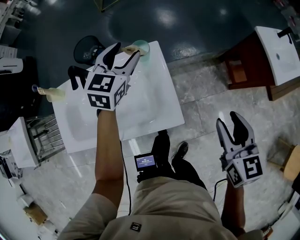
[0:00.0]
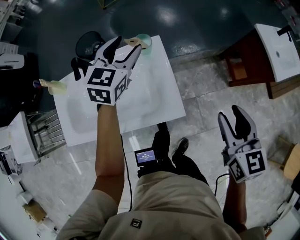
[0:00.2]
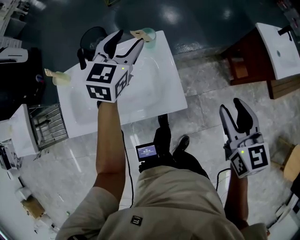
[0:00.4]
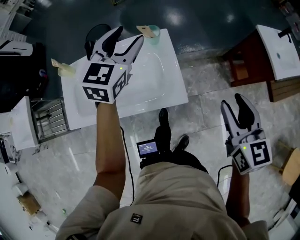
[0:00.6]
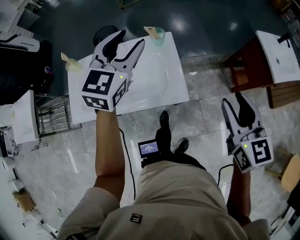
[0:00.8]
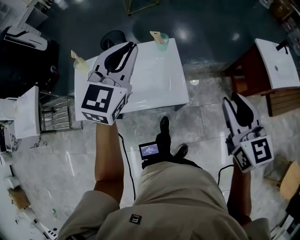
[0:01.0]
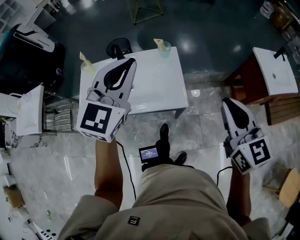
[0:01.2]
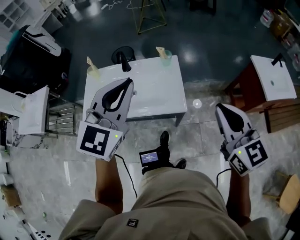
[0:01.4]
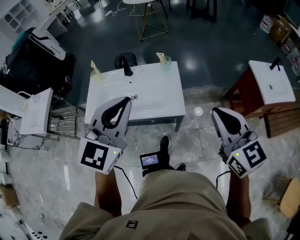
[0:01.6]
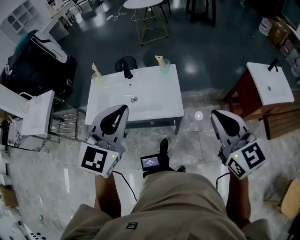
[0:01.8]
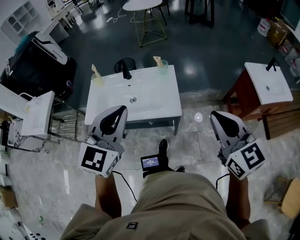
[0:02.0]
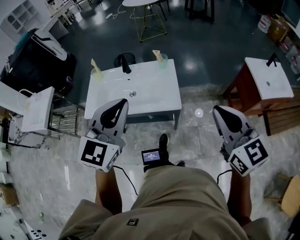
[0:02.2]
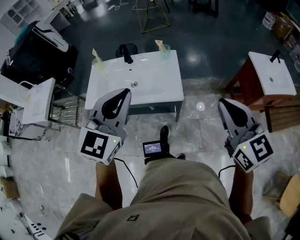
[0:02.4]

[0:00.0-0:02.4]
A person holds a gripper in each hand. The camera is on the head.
0:00.0 to 0:01.2: The right gripper moves upward and backward, roughly 20 cm, turns by some 20 degrees, and closes up. The left gripper travels backward and upward by about 35 cm, changes its angle by roughly 20 degrees, and closes.
0:01.2 to 0:02.4: The right gripper heads backward and upward, covering about 15 cm. The left gripper goes some 20 cm backward.

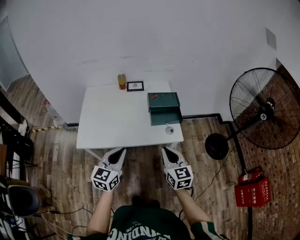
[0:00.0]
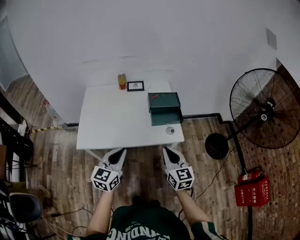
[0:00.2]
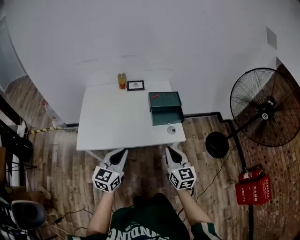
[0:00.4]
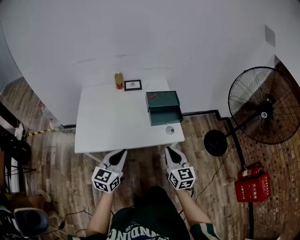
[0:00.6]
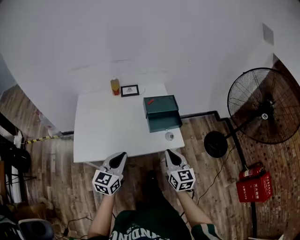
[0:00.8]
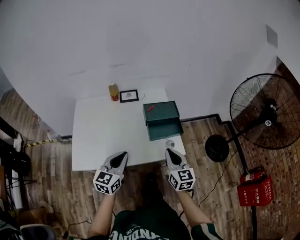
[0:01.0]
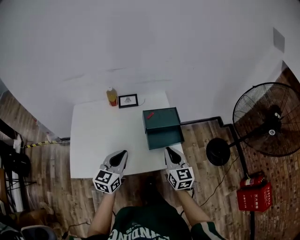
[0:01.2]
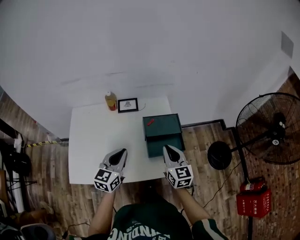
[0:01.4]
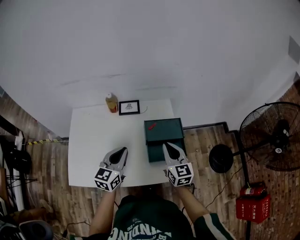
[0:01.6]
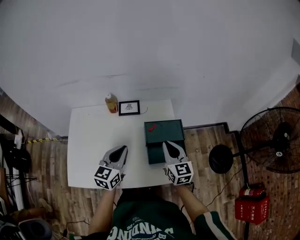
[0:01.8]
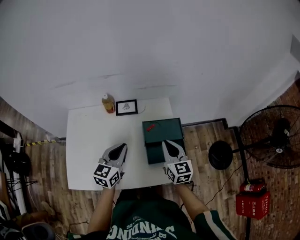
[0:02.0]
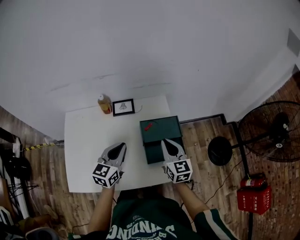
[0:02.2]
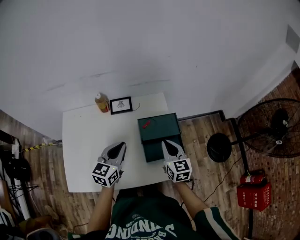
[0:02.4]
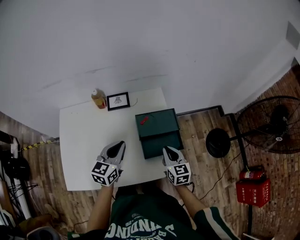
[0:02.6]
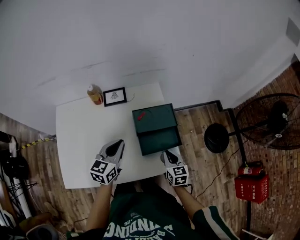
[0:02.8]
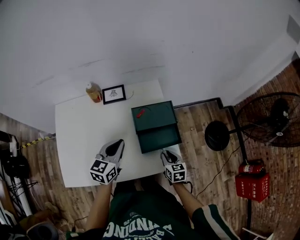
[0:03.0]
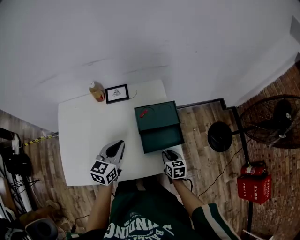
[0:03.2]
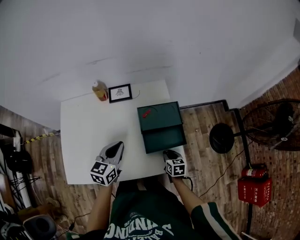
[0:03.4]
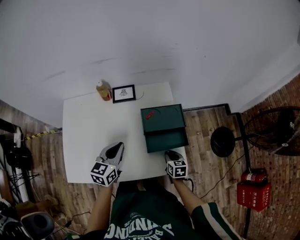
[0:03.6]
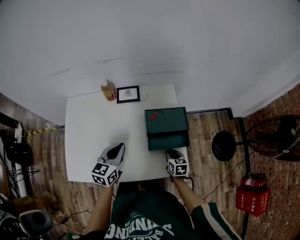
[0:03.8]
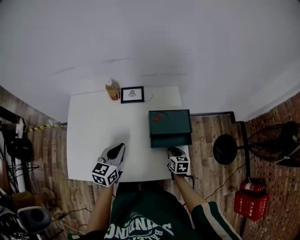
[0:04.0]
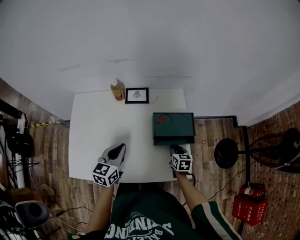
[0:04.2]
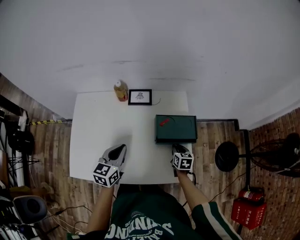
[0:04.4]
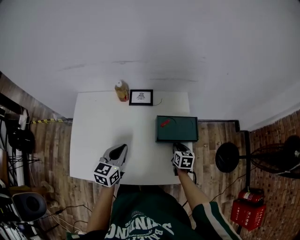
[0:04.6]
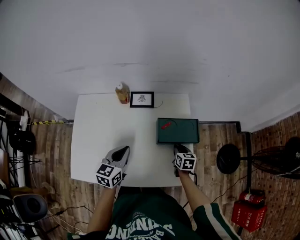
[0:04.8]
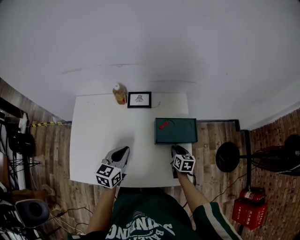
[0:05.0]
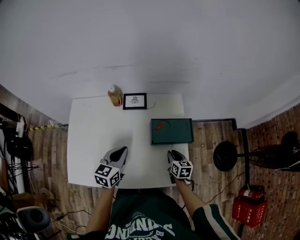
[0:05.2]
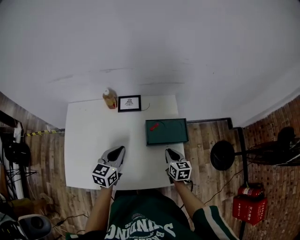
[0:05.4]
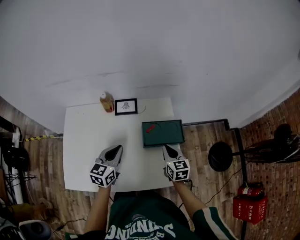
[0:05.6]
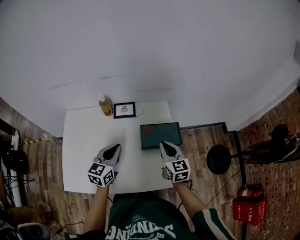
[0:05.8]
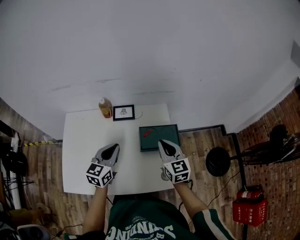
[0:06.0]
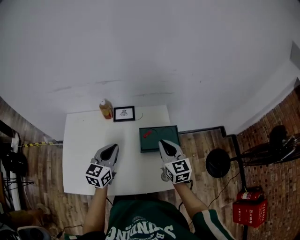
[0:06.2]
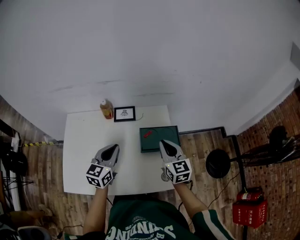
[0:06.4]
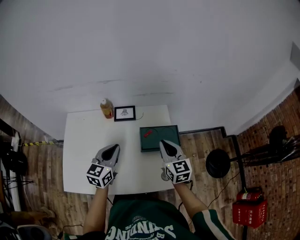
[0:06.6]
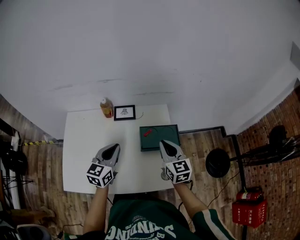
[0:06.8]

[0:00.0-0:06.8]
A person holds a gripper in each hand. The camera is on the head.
0:00.0 to 0:01.4: The two grippers go approximately 25 cm forward.
0:01.4 to 0:02.8: The left gripper is displaced forward by approximately 10 cm. Meanwhile the right gripper is displaced downward by approximately 15 cm, and changes its angle by about 20 degrees.
0:02.8 to 0:04.0: The right gripper travels downward by roughly 10 cm. Meanwhile the left gripper is displaced to the left by approximately 5 cm.
0:04.0 to 0:05.4: The right gripper is displaced upward by roughly 5 cm.
0:05.4 to 0:06.8: The right gripper moves upward, some 20 cm, and turns by roughly 30 degrees; the left gripper moves upward, about 5 cm.

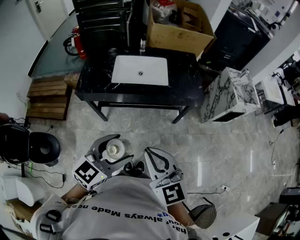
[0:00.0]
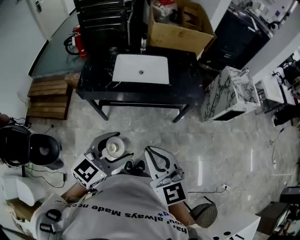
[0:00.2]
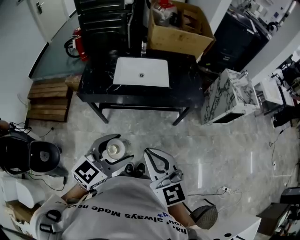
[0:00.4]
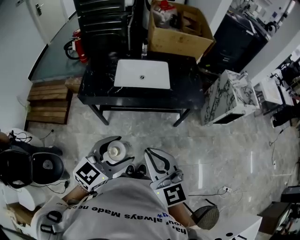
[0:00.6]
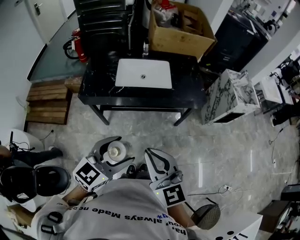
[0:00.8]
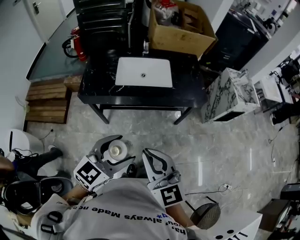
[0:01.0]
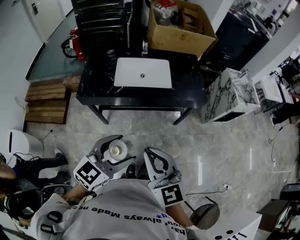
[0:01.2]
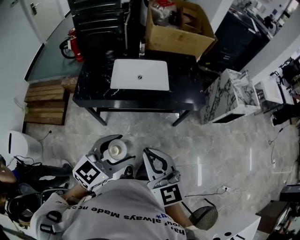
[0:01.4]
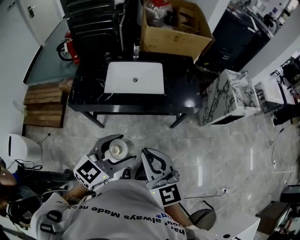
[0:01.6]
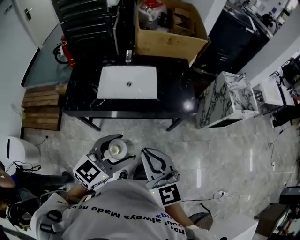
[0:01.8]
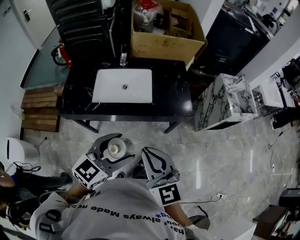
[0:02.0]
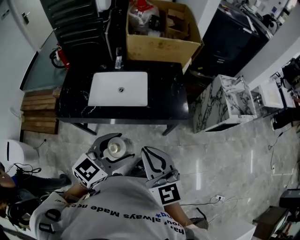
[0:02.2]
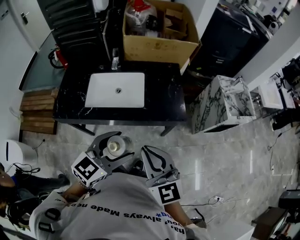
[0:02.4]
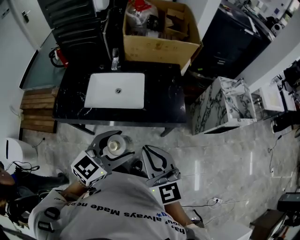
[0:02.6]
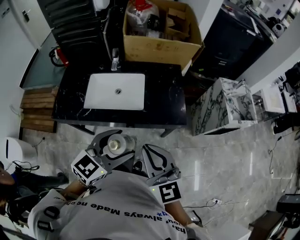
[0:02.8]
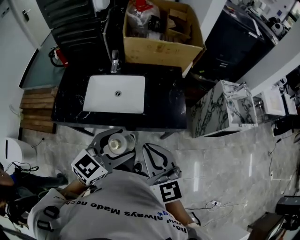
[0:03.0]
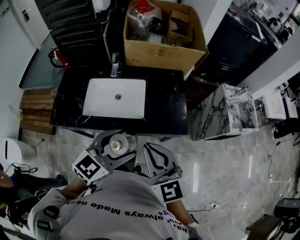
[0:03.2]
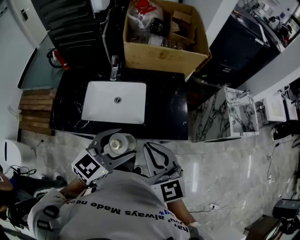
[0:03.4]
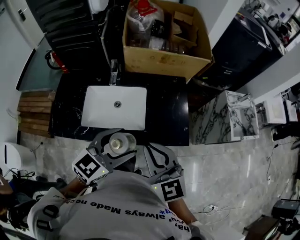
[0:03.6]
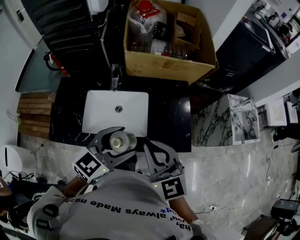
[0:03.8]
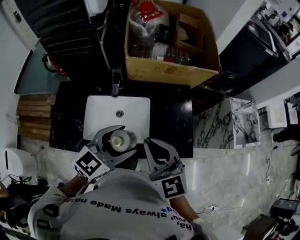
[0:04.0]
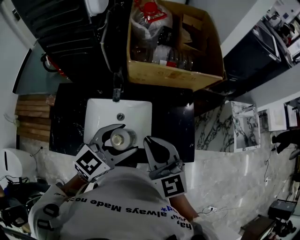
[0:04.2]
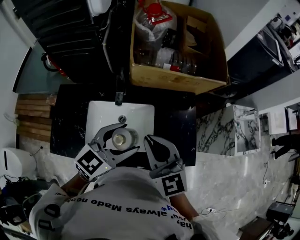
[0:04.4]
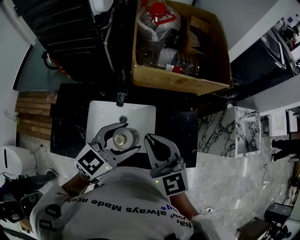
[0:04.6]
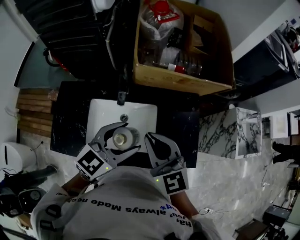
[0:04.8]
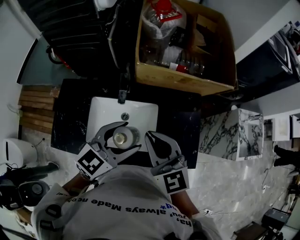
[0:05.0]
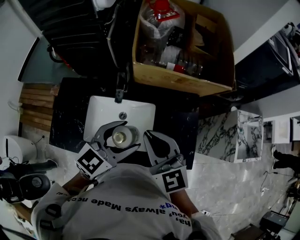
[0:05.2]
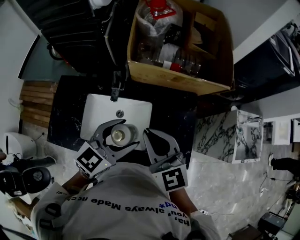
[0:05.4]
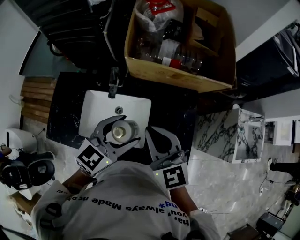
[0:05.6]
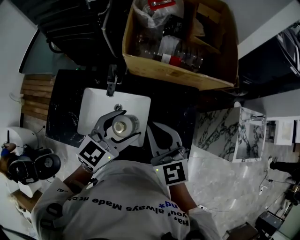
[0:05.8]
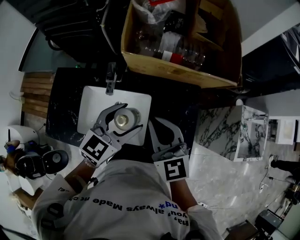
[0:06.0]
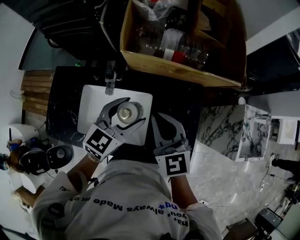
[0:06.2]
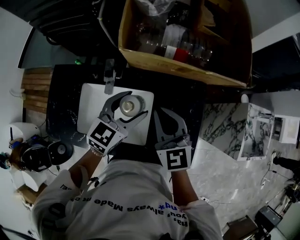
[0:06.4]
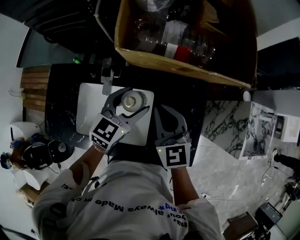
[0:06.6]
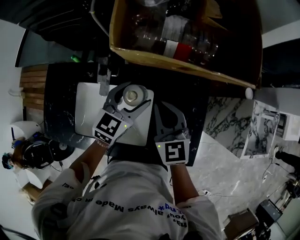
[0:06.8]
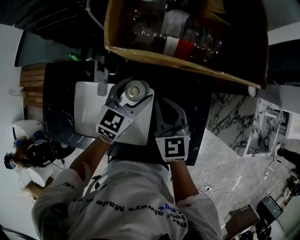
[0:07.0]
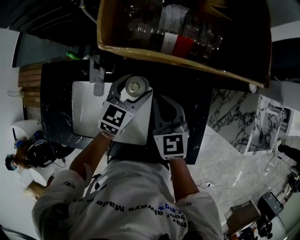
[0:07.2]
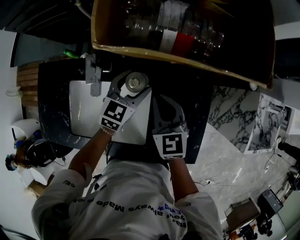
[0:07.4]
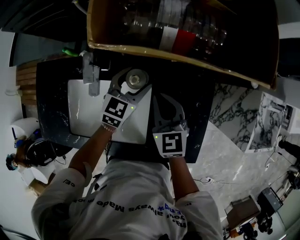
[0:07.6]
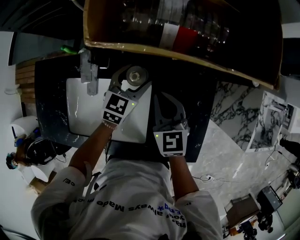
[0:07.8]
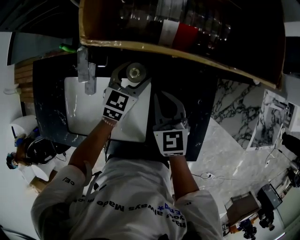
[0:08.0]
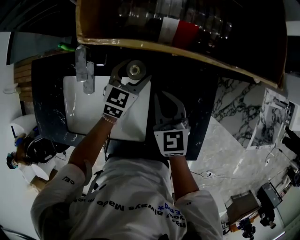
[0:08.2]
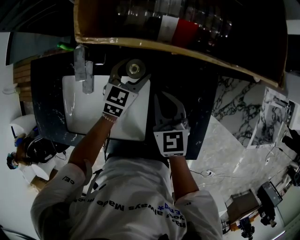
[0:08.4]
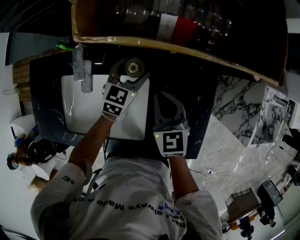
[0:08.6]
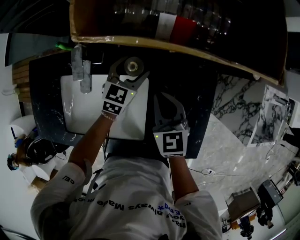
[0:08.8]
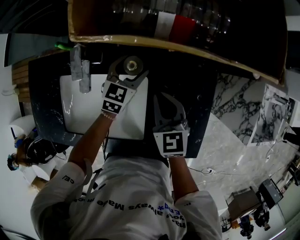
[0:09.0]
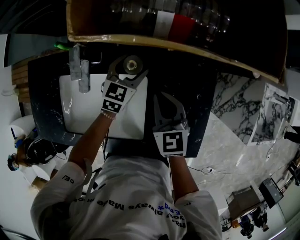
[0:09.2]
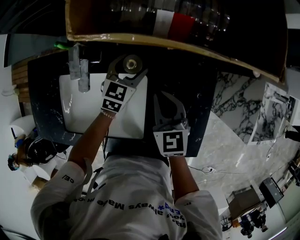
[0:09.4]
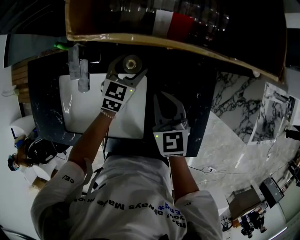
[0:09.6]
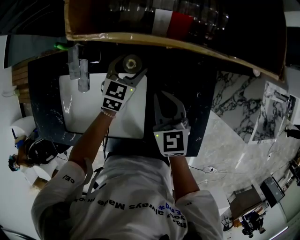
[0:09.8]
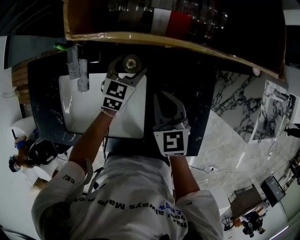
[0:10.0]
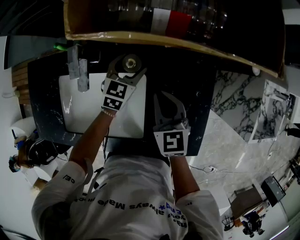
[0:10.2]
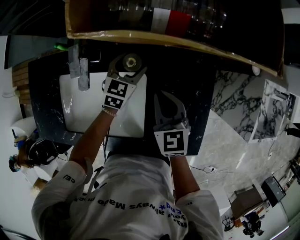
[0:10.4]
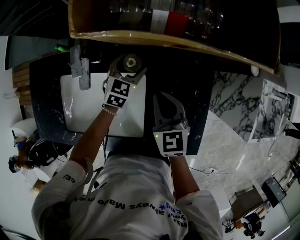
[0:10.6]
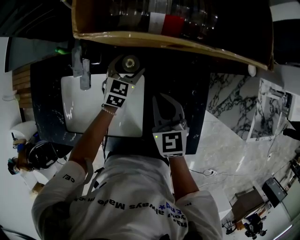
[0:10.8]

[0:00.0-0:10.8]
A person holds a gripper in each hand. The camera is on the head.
0:00.0 to 0:01.6: Both grippers move forward, about 10 cm.
0:01.6 to 0:03.0: Both grippers travel together forward and to the right, roughly 25 cm.
0:03.0 to 0:04.6: The grippers both shift forward and to the left by some 30 cm.
0:04.6 to 0:06.2: The right gripper is displaced forward, to the right and downward by about 15 cm. The left gripper goes approximately 15 cm forward, downward and to the right.
0:06.2 to 0:07.8: The two grippers go some 25 cm downward and forward.
0:07.8 to 0:09.2: The grippers make only small movements.
0:09.2 to 0:10.8: The grippers move only a little.

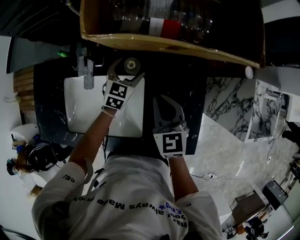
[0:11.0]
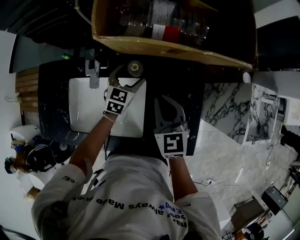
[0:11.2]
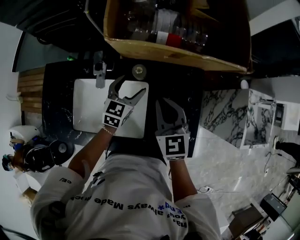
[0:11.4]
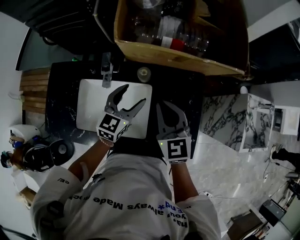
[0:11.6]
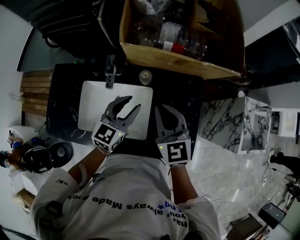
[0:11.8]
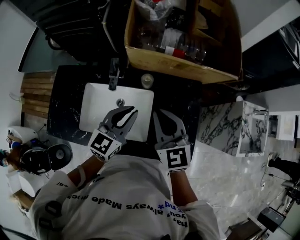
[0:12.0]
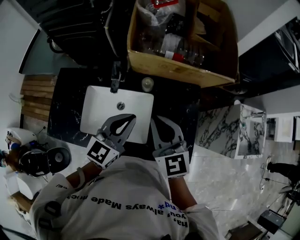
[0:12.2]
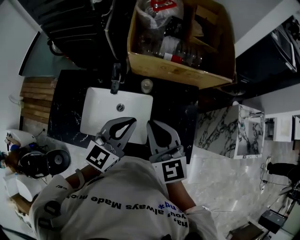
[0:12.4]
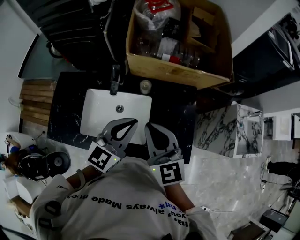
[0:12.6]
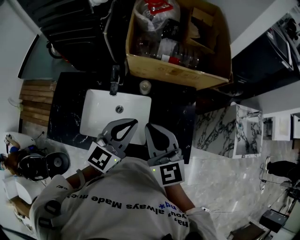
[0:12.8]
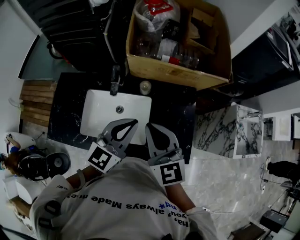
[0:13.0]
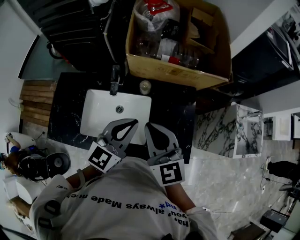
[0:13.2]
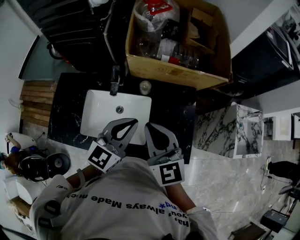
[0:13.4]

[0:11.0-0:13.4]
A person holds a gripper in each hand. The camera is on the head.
0:11.0 to 0:12.2: The left gripper travels upward and backward by approximately 35 cm, swivels some 30 degrees, and closes. Meanwhile the right gripper moves upward and backward, about 20 cm.
0:12.2 to 0:13.4: The right gripper changes place by roughly 5 cm.

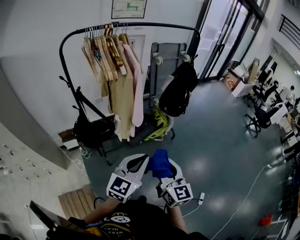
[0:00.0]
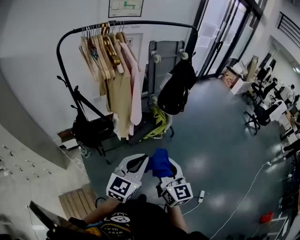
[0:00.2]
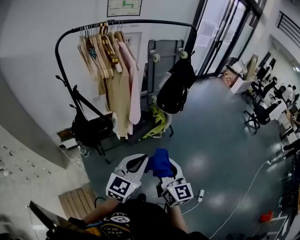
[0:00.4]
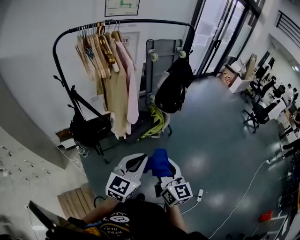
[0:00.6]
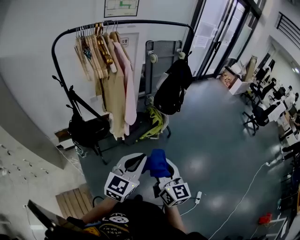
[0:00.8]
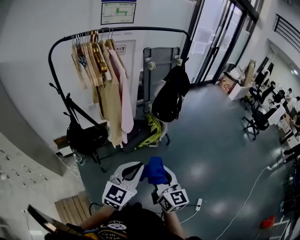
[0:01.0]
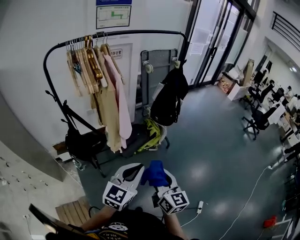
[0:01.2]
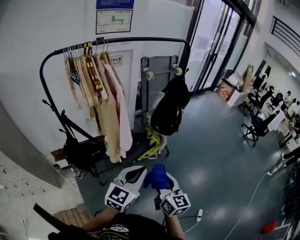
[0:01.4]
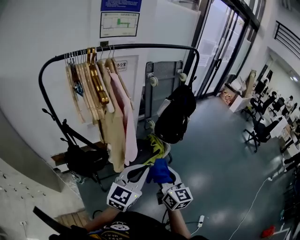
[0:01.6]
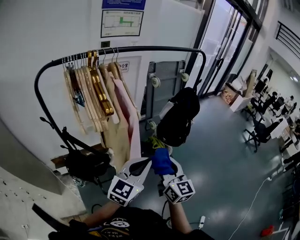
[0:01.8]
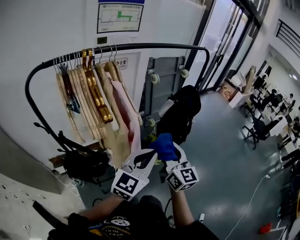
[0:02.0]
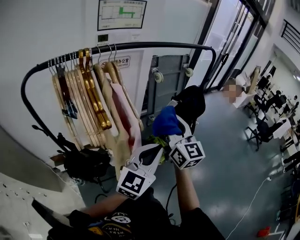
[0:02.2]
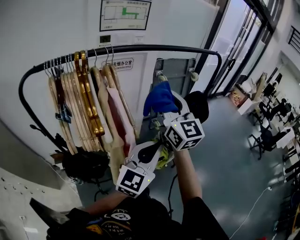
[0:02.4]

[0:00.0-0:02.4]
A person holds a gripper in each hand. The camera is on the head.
0:00.0 to 0:01.2: Both grippers move to the right, approximately 5 cm.
0:01.2 to 0:02.4: The right gripper travels forward and upward by approximately 50 cm, and turns by approximately 30 degrees, while the left gripper goes roughly 35 cm forward.
